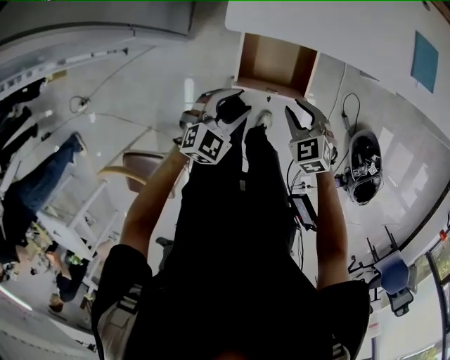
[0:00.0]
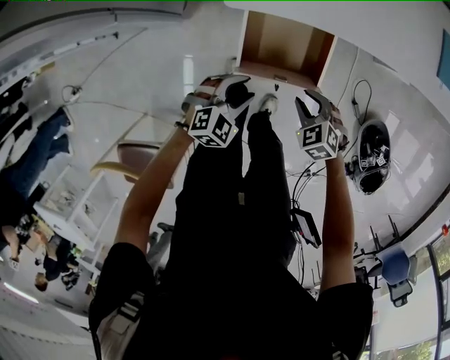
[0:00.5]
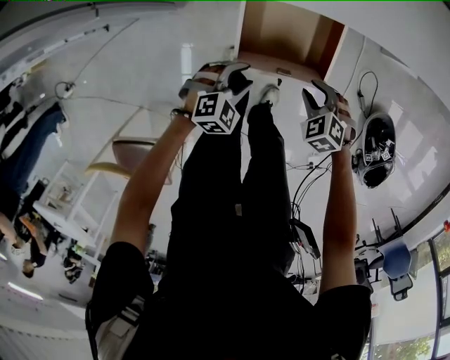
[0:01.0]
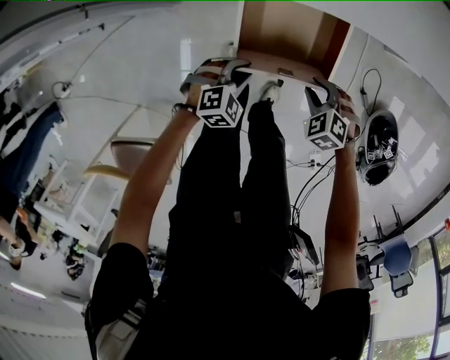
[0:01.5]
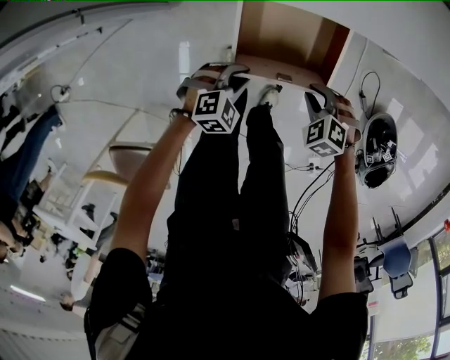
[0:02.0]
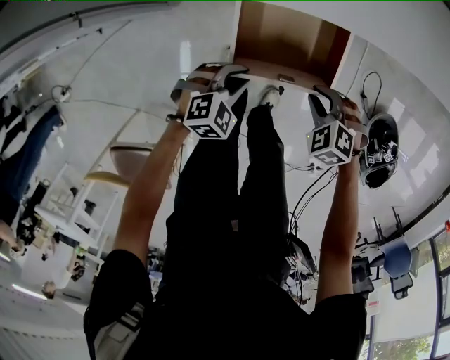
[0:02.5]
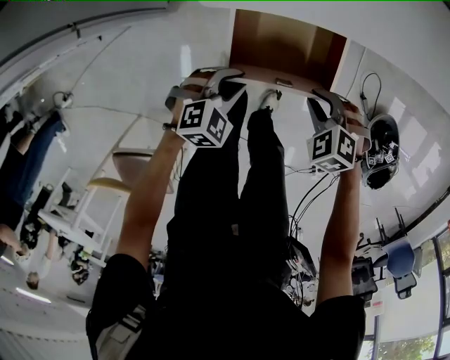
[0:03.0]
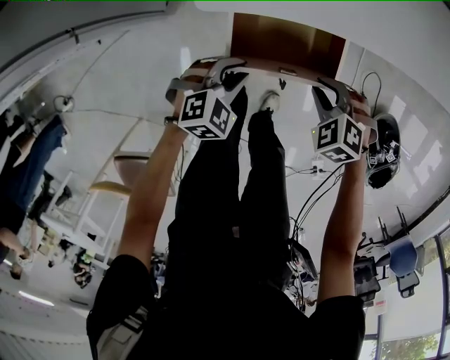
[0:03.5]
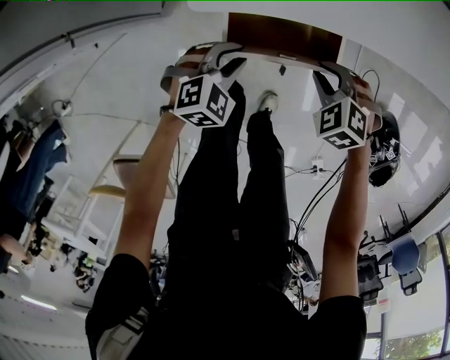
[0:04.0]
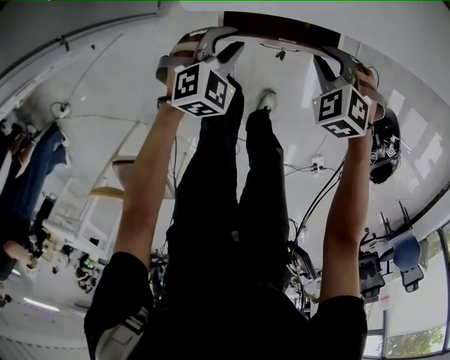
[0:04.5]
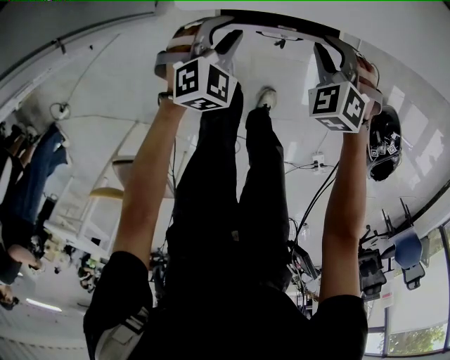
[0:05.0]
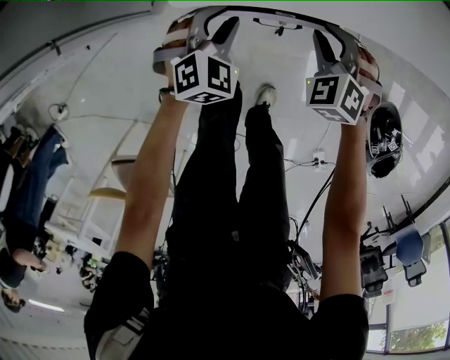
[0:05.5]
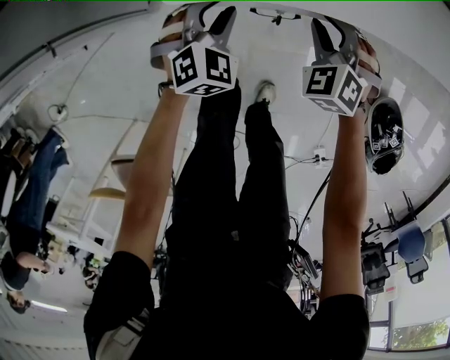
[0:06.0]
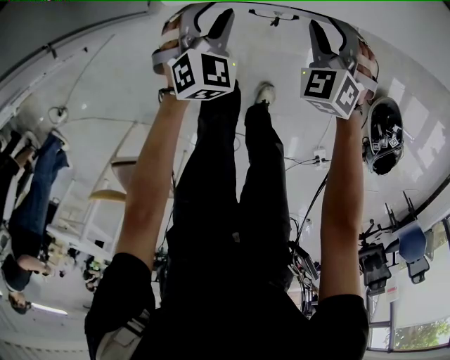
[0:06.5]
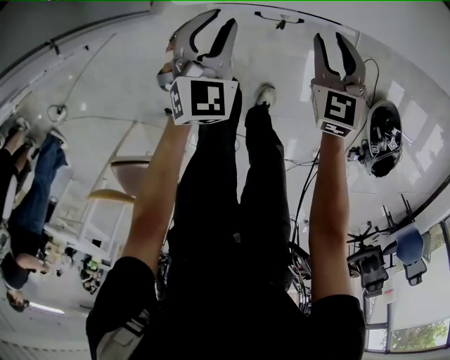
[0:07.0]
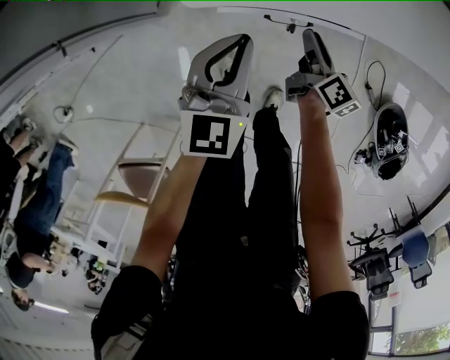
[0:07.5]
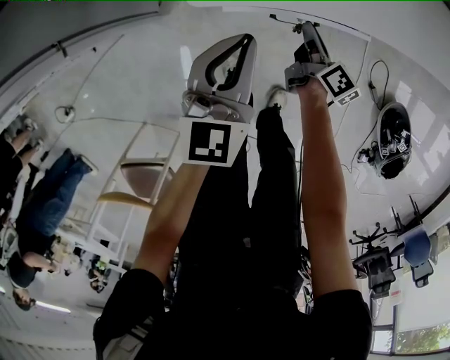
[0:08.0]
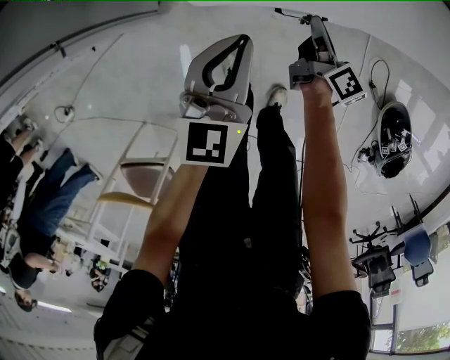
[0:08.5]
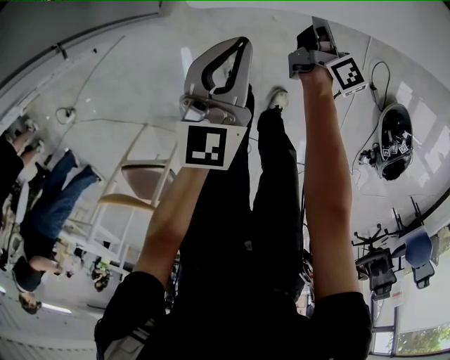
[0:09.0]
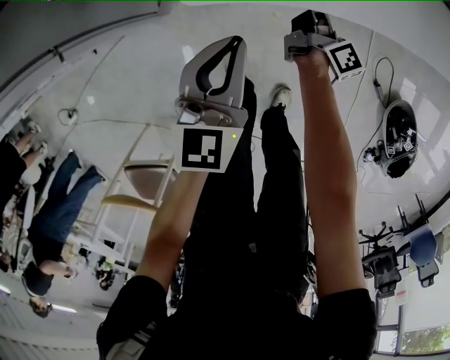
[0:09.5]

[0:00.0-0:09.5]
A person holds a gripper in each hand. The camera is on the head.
0:00.0 to 0:02.0: Both grippers travel together downward, about 20 cm. The right gripper changes its angle by roughly 30 degrees, while the left gripper changes its angle by some 20 degrees, and closes.
0:02.0 to 0:04.0: Both grippers move forward and upward, about 10 cm.
0:04.0 to 0:05.5: Both grippers move forward, roughly 10 cm. The right gripper turns by approximately 20 degrees.
0:05.5 to 0:07.5: The right gripper goes roughly 5 cm downward, and rolls clockwise, seen from behind, by roughly 110 degrees. The left gripper shifts roughly 10 cm upward, rotates about 40 degrees, and closes its fingers.
0:07.5 to 0:09.5: The right gripper shifts approximately 10 cm forward, changes its angle by approximately 30 degrees, and closes up.

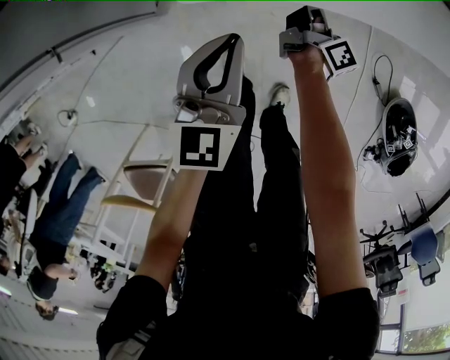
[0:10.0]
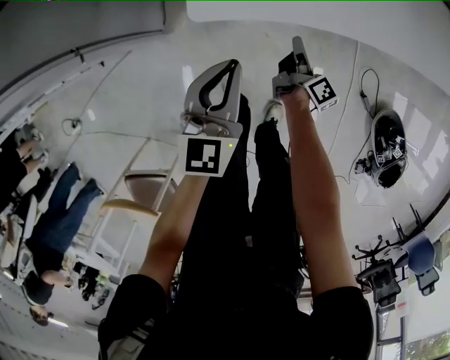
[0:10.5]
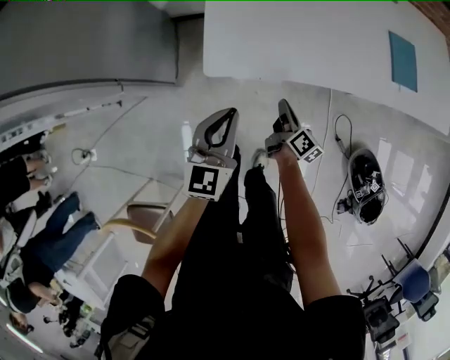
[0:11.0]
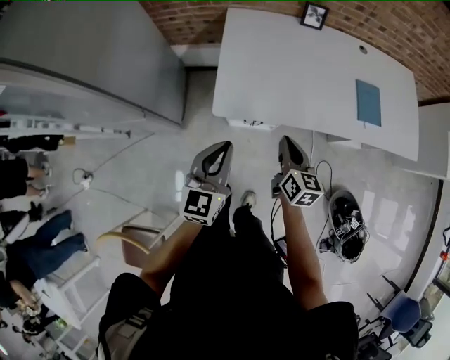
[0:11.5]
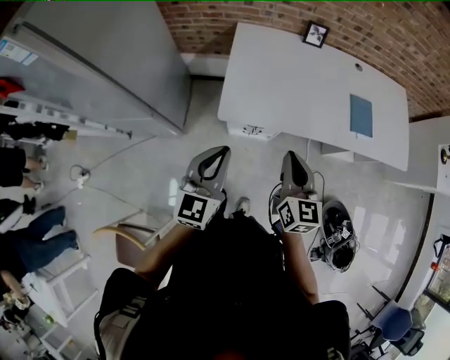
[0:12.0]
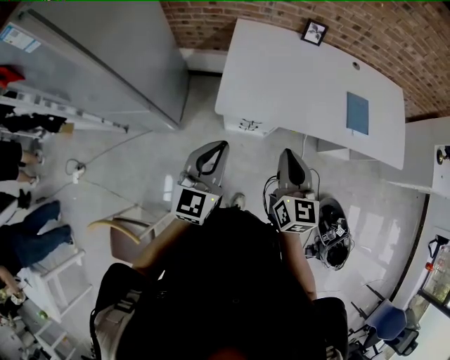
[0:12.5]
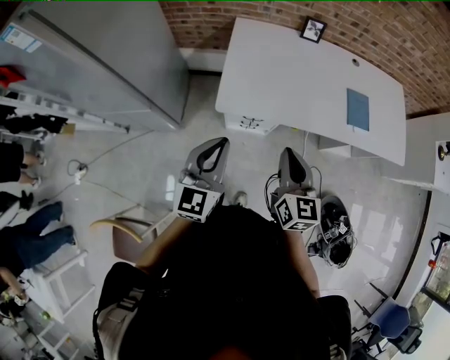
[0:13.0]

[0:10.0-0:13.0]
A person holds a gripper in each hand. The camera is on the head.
0:10.0 to 0:11.5: The two grippers go about 30 cm upward. The right gripper twists roughly 60 degrees counterclockwise, seen from behind.
0:11.5 to 0:13.0: The right gripper goes about 15 cm upward and backward. Meanwhile the left gripper goes approximately 5 cm upward.

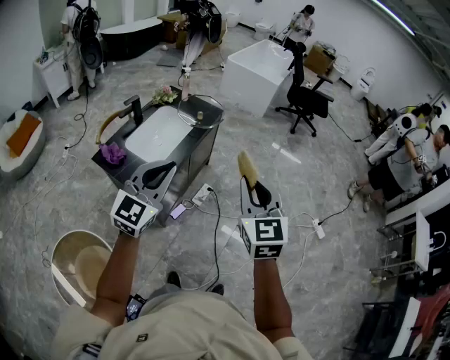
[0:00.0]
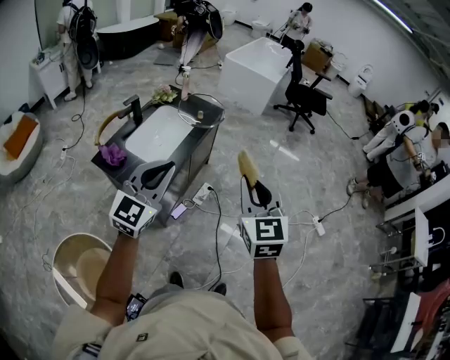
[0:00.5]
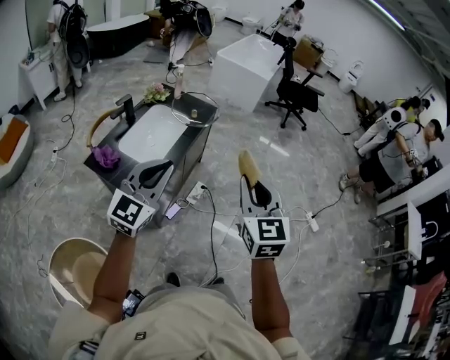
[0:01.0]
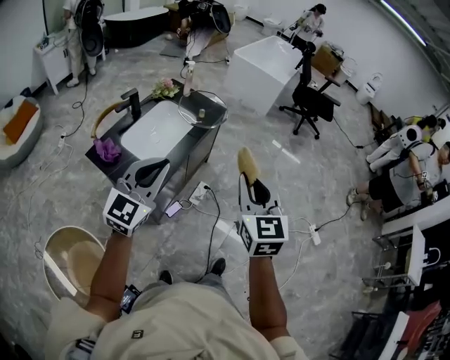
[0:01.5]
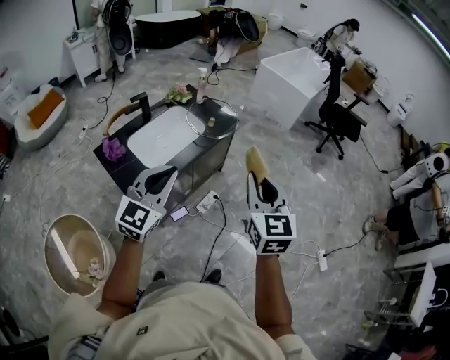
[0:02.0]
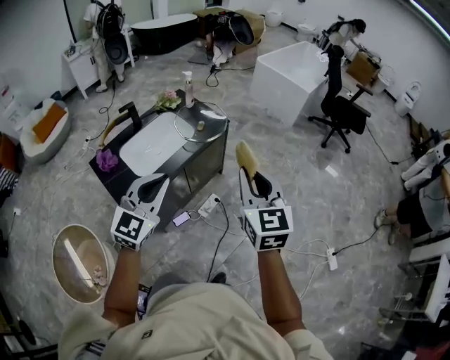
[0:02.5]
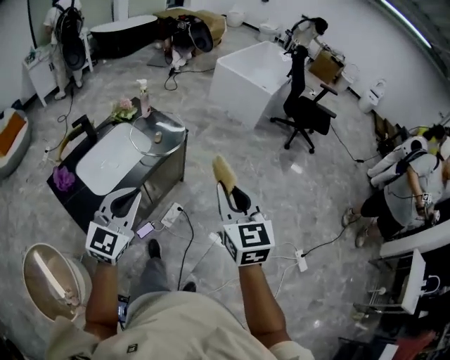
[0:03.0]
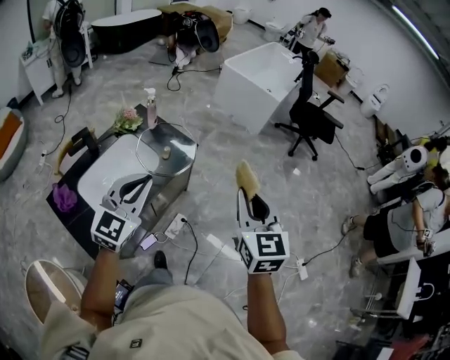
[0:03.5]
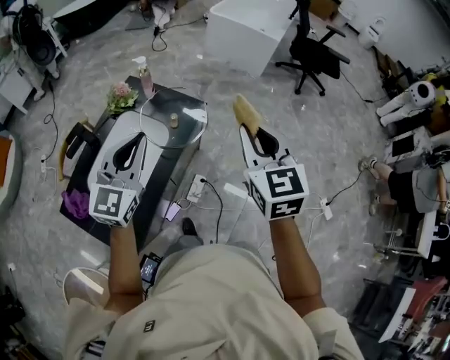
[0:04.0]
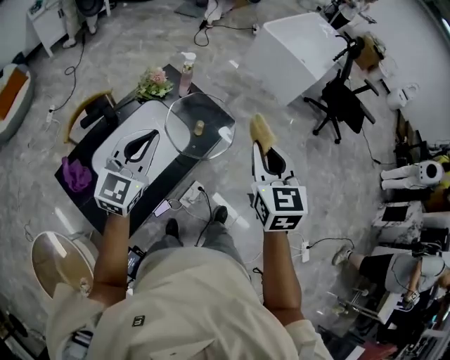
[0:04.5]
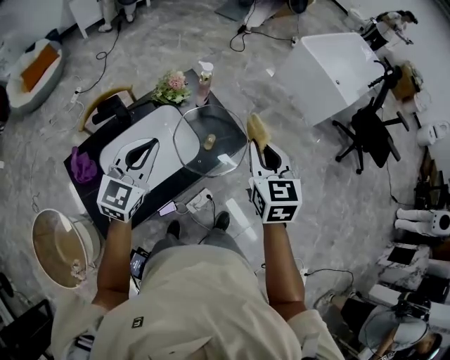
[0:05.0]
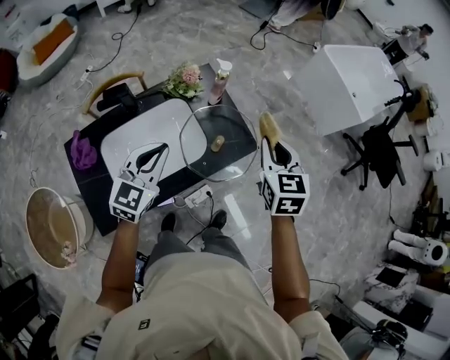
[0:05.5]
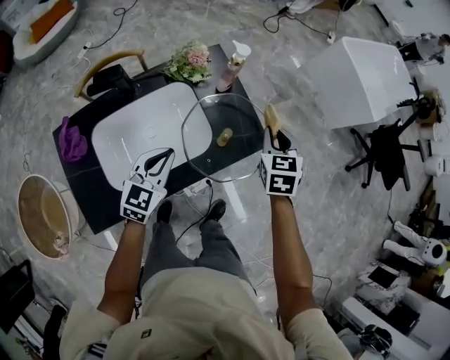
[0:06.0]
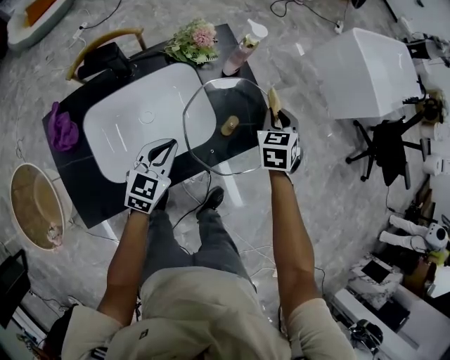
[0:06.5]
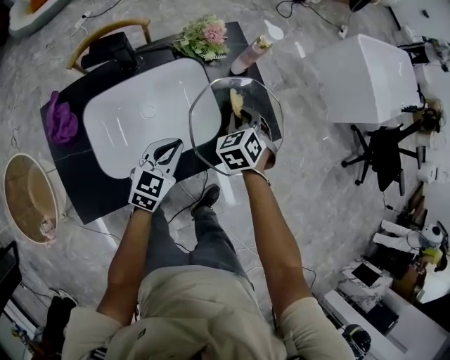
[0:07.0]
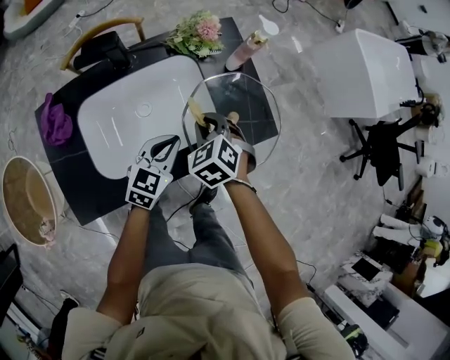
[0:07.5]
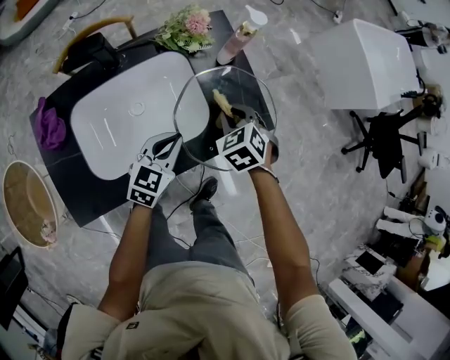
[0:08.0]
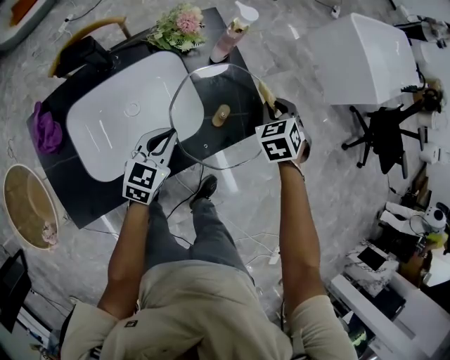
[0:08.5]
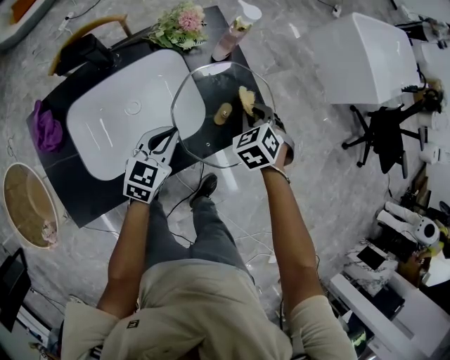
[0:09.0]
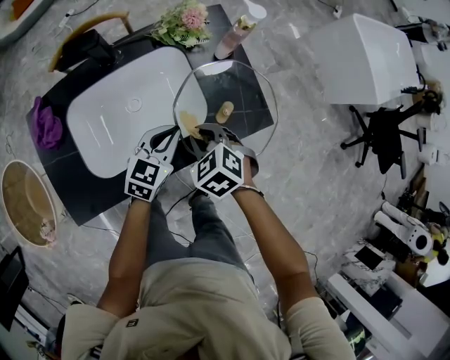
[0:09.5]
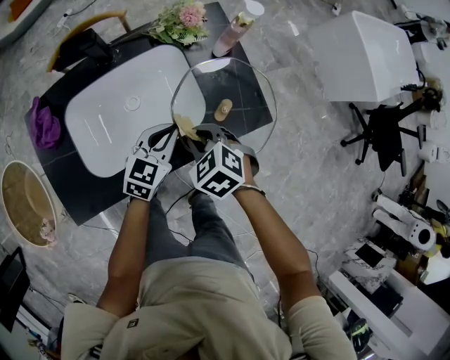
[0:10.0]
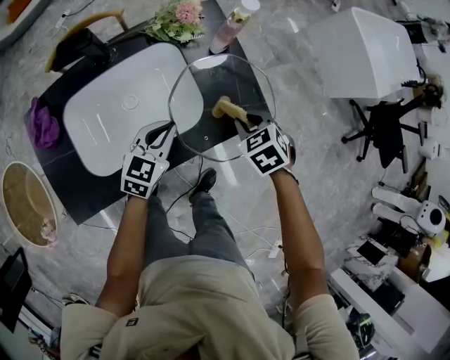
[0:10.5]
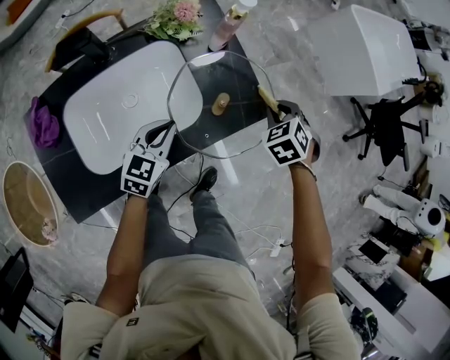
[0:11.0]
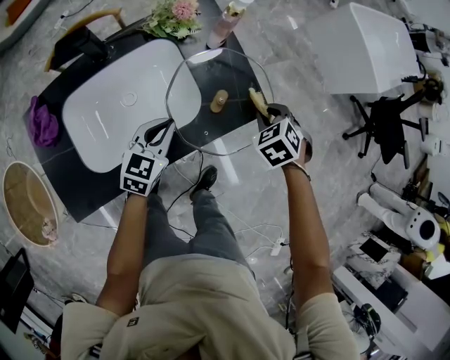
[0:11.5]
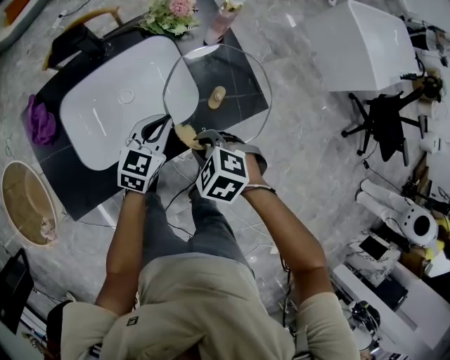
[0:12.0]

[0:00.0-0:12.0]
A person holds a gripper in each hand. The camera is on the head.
0:00.0 to 0:02.0: The right gripper is displaced forward by some 20 cm, while the left gripper is displaced forward and to the right by roughly 15 cm.
0:02.0 to 0:04.0: The two grippers go about 30 cm forward.
0:04.0 to 0:06.0: The left gripper is displaced downward by about 25 cm, and swivels roughly 40 degrees. Meanwhile the right gripper moves forward and downward, some 40 cm, and turns by some 30 degrees.
0:06.0 to 0:08.0: The left gripper moves downward, some 10 cm, while the right gripper is displaced downward and to the left by approximately 15 cm, and swivels about 40 degrees.
0:08.0 to 0:10.0: The right gripper shifts by roughly 10 cm.

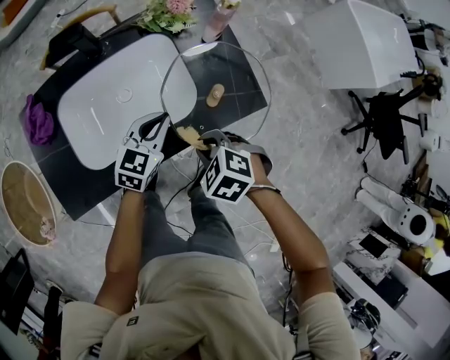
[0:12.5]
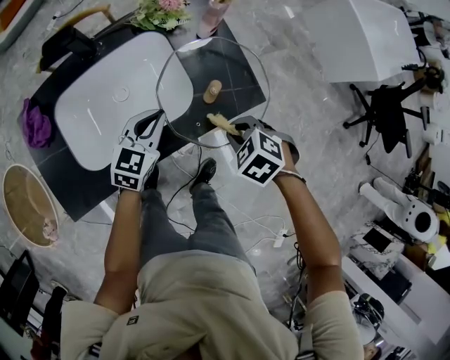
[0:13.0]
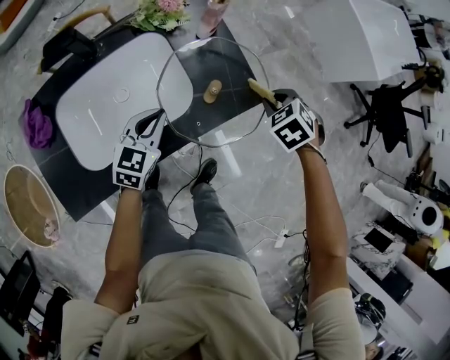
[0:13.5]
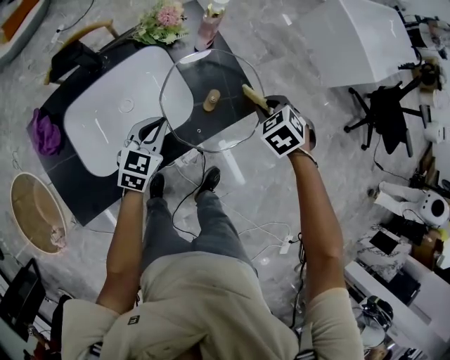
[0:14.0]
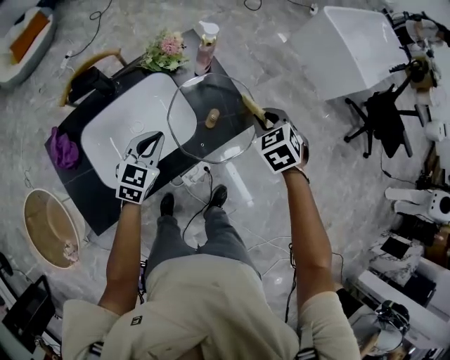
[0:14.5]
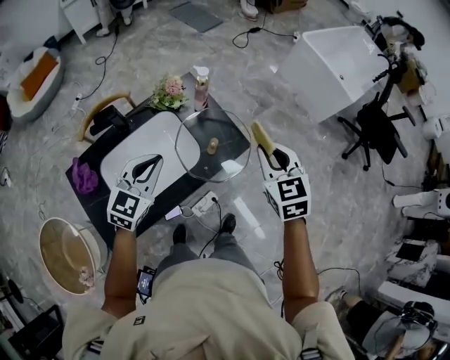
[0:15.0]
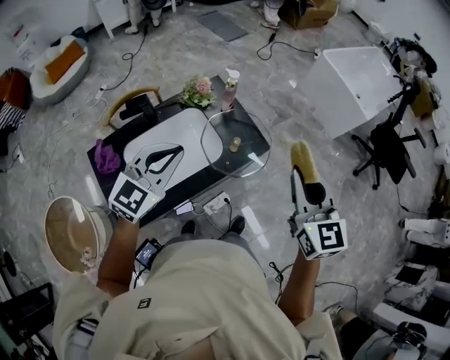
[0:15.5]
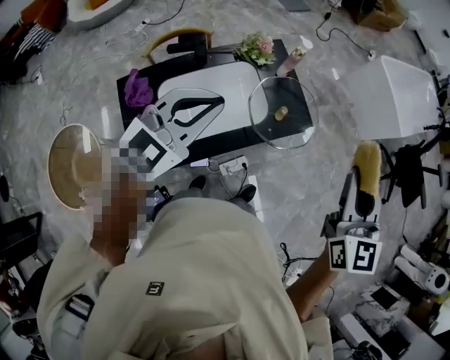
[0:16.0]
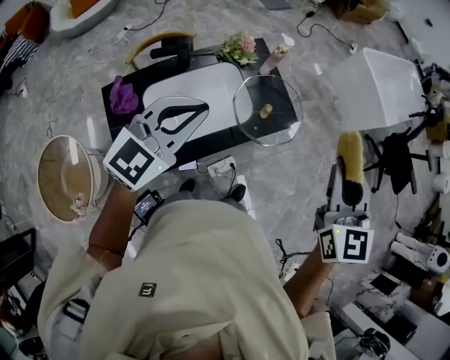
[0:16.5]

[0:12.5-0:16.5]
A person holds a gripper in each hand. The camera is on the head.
0:12.5 to 0:14.5: The right gripper changes place by about 25 cm, and changes its angle by roughly 40 degrees. Meanwhile the left gripper heads upward, covering approximately 10 cm.
0:14.5 to 0:16.5: The two grippers go about 35 cm upward and backward. The left gripper changes its angle by some 20 degrees, while the right gripper angles its fingers upward, by about 40 degrees.
